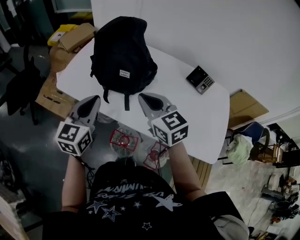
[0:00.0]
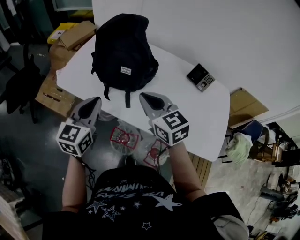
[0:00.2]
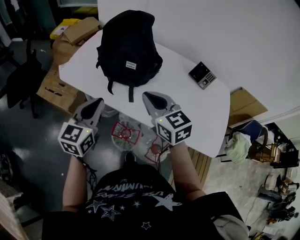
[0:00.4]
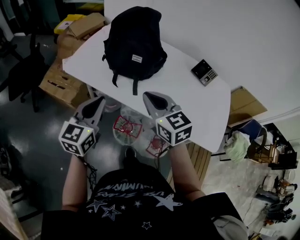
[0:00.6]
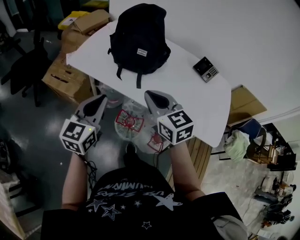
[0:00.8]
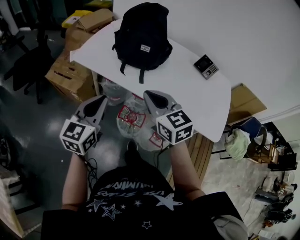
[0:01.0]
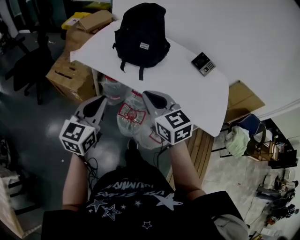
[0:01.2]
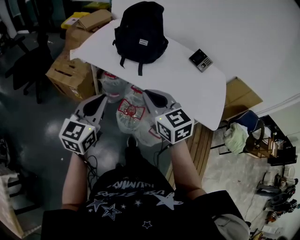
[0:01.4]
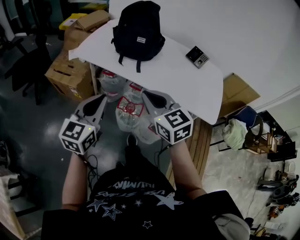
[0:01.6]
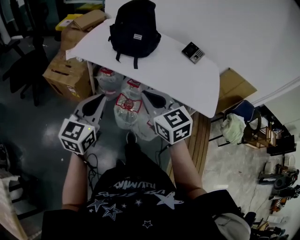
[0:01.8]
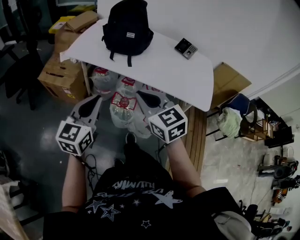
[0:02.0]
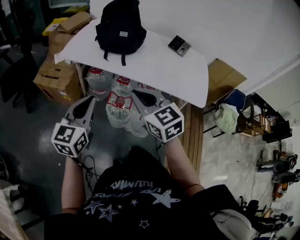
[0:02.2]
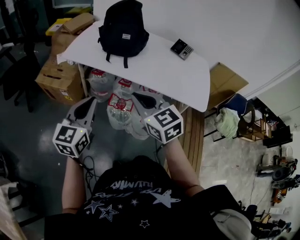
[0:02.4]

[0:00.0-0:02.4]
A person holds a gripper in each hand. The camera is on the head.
0:00.0 to 0:01.2: The left gripper travels backward by about 20 cm. The right gripper travels backward and to the left by roughly 20 cm.
0:01.2 to 0:02.4: Both grippers move backward, roughly 10 cm.

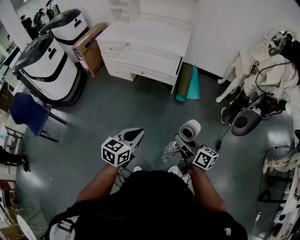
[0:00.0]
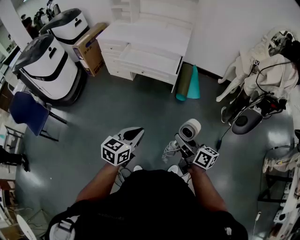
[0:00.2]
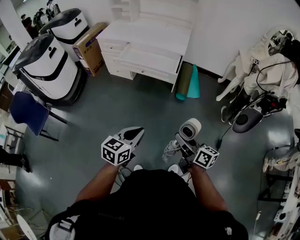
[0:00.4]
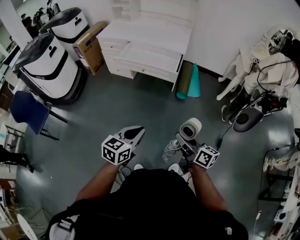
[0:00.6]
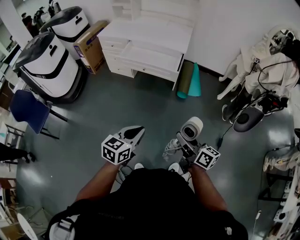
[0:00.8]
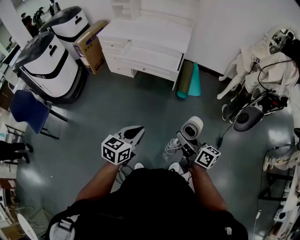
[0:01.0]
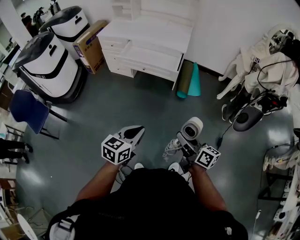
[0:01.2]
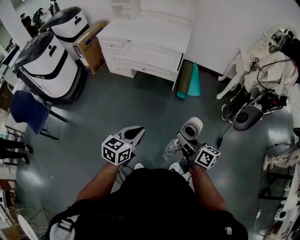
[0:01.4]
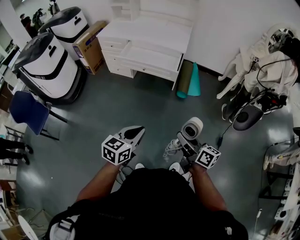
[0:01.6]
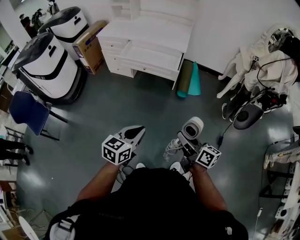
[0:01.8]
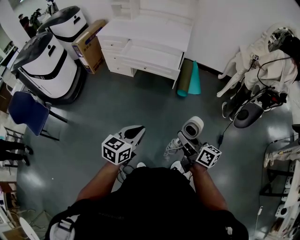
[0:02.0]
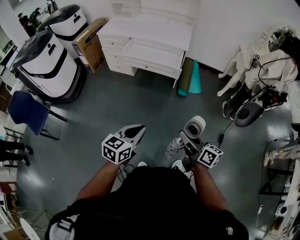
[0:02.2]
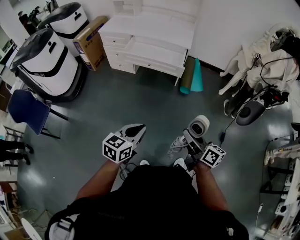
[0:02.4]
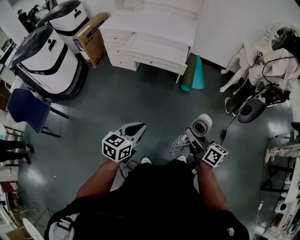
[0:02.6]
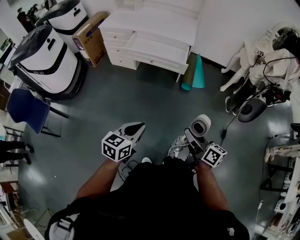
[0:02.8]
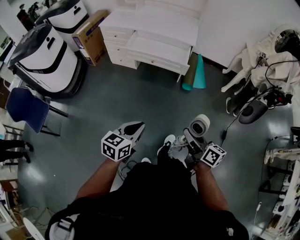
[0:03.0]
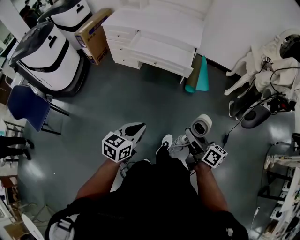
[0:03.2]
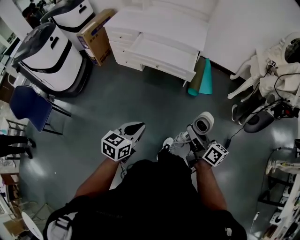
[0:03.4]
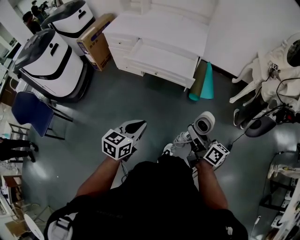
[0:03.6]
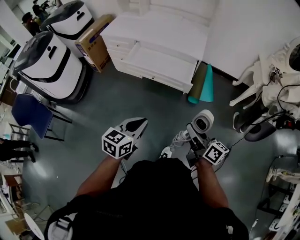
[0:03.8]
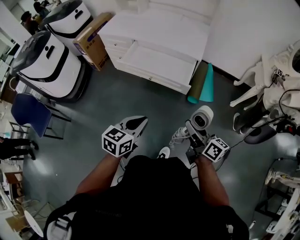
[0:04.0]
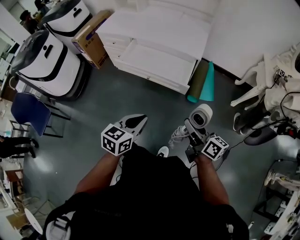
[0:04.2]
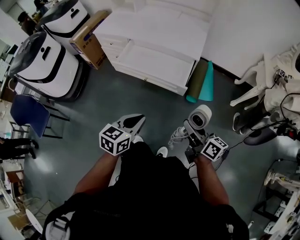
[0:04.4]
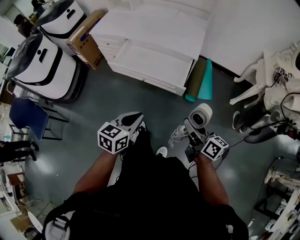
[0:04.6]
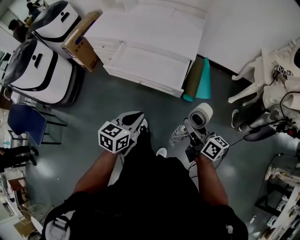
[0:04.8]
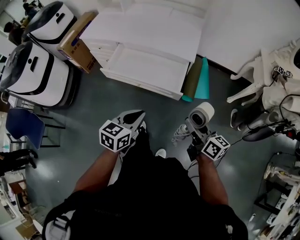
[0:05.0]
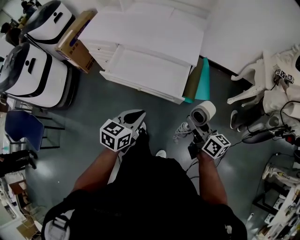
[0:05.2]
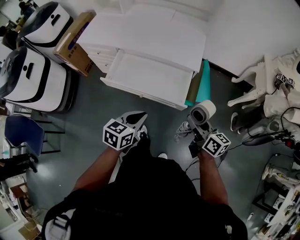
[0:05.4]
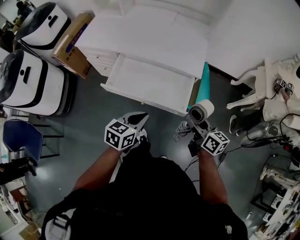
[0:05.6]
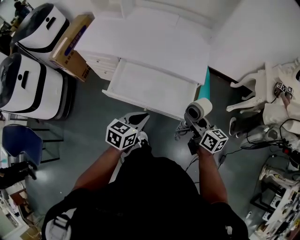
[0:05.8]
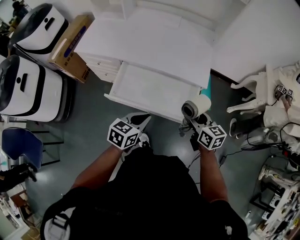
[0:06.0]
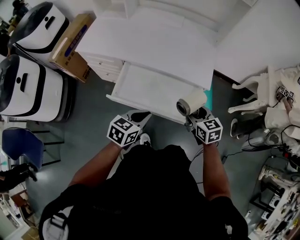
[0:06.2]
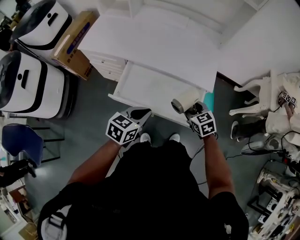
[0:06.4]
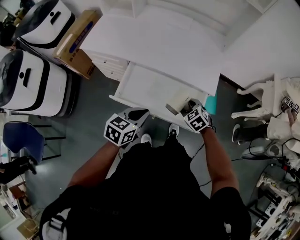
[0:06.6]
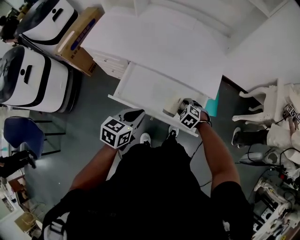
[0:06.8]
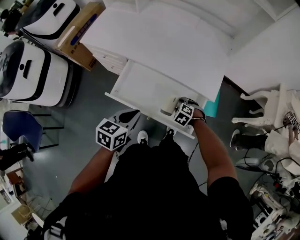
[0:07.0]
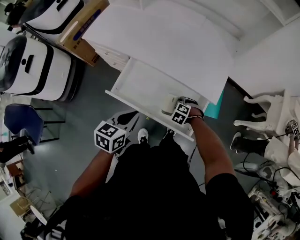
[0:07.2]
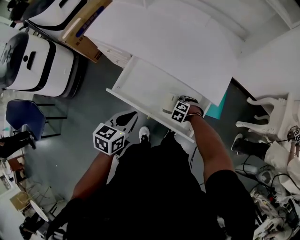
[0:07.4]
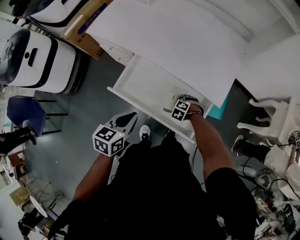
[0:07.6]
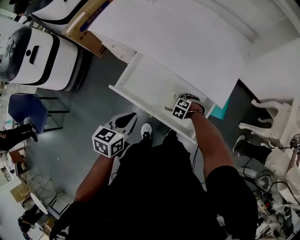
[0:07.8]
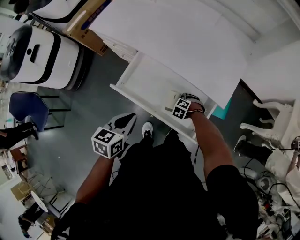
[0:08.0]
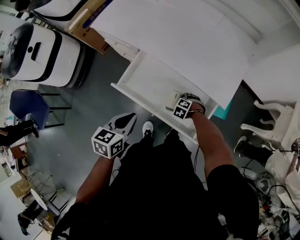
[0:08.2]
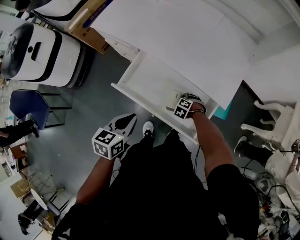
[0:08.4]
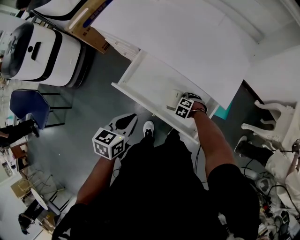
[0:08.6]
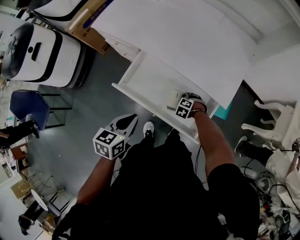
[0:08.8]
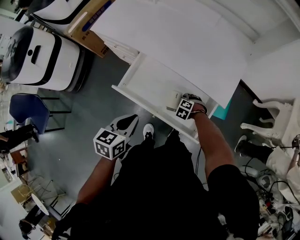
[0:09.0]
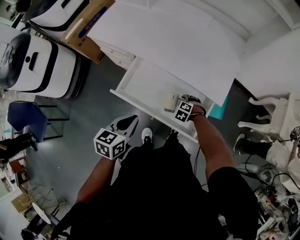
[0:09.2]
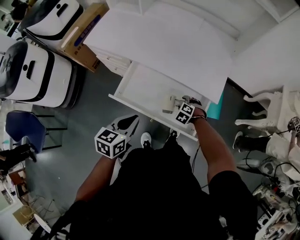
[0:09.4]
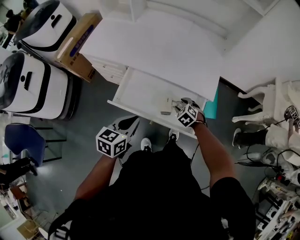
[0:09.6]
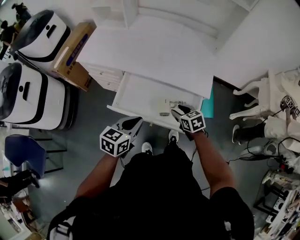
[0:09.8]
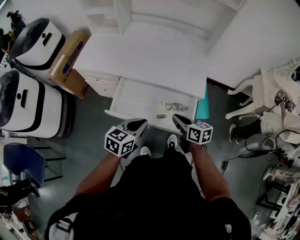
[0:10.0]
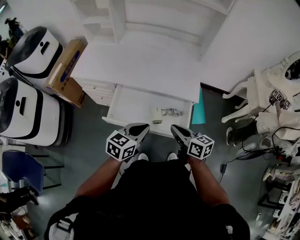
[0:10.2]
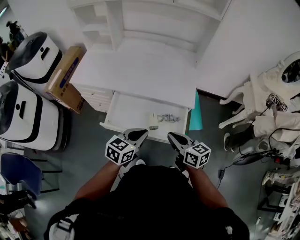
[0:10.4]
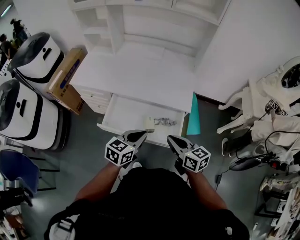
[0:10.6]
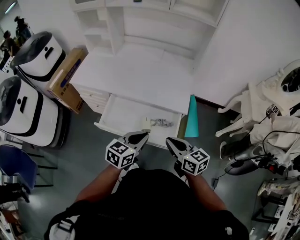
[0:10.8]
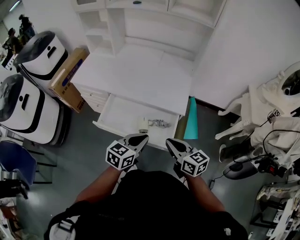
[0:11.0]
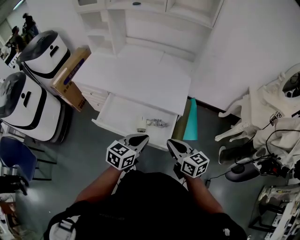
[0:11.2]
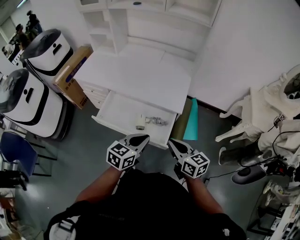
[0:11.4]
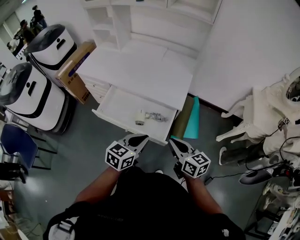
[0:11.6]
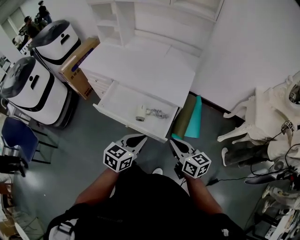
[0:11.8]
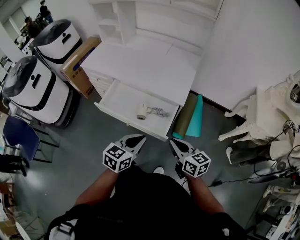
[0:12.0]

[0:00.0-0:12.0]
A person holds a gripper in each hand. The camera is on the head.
0:00.0 to 0:01.6: The grippers make only small movements.
0:01.6 to 0:03.0: Both grippers travel together to the left, approximately 5 cm.
0:03.0 to 0:04.4: Both grippers move forward, some 25 cm.
0:04.4 to 0:06.0: The grippers both shift forward by roughly 30 cm. The right gripper changes its angle by some 30 degrees.
0:06.0 to 0:07.6: The right gripper goes some 30 cm downward, and tips its fingers downward by about 60 degrees, while the left gripper shifts by approximately 10 cm, and rotates some 30 degrees.
0:07.6 to 0:09.0: The grippers make only small movements.
0:09.0 to 0:10.4: The left gripper shifts by about 10 cm, and changes its angle by roughly 40 degrees; the right gripper shifts approximately 35 cm upward, points its fingers approximately 60 degrees further upward, and closes.
0:10.4 to 0:12.0: The grippers both shift to the right and backward by roughly 20 cm.

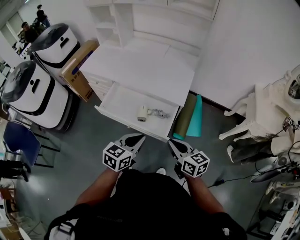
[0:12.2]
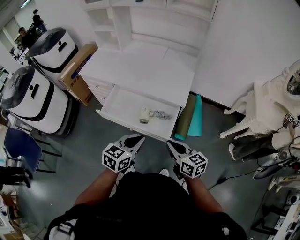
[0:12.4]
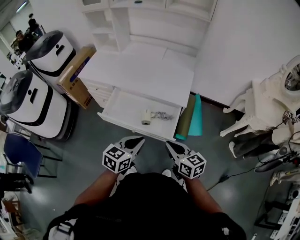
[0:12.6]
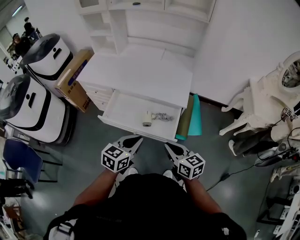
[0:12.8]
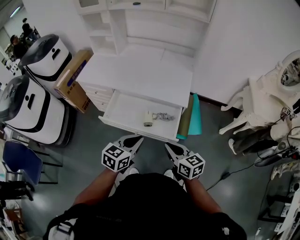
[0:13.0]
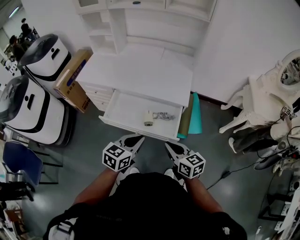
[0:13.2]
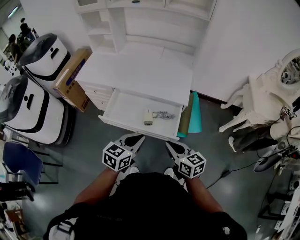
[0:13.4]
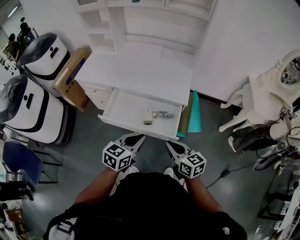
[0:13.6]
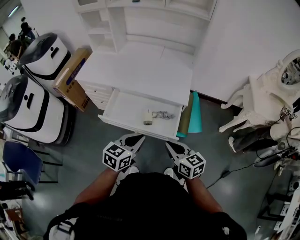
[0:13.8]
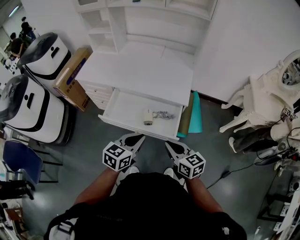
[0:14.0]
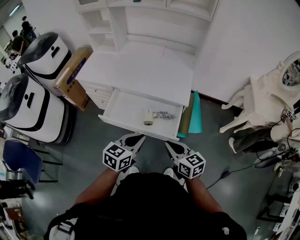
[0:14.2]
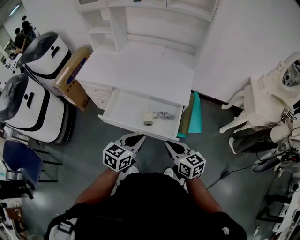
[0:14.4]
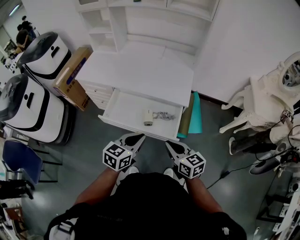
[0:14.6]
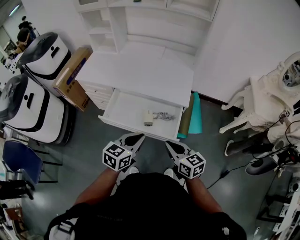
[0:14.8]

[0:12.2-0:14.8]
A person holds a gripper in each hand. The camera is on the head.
0:12.2 to 0:13.4: The two grippers go about 10 cm to the left.
0:13.4 to 0:14.8: The two grippers keep their place.

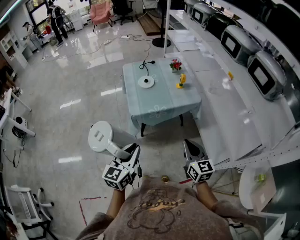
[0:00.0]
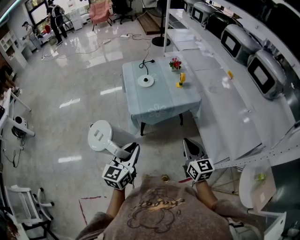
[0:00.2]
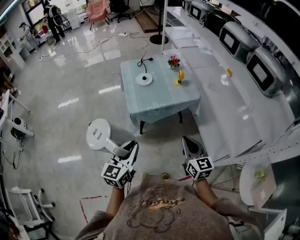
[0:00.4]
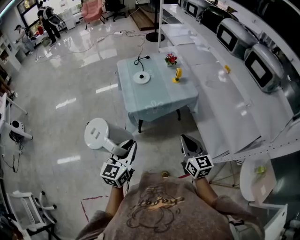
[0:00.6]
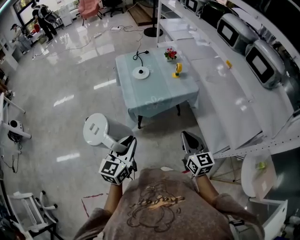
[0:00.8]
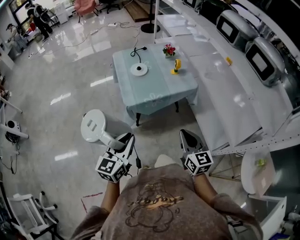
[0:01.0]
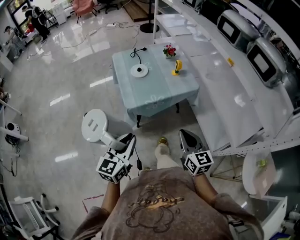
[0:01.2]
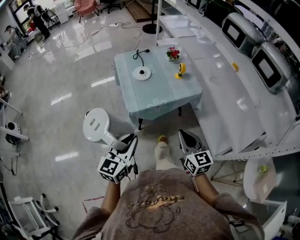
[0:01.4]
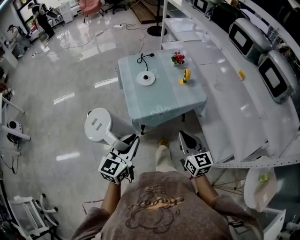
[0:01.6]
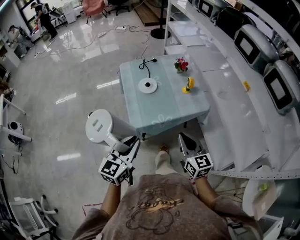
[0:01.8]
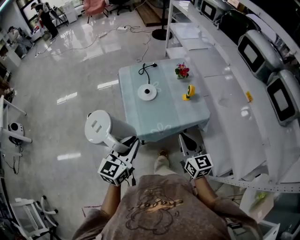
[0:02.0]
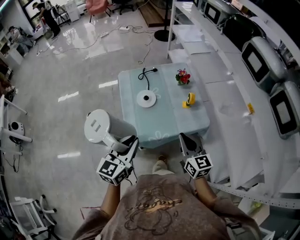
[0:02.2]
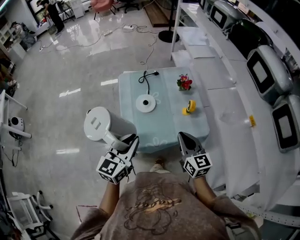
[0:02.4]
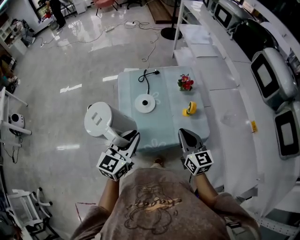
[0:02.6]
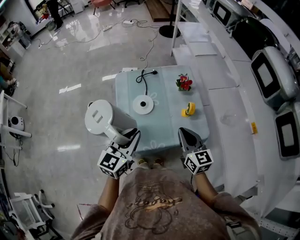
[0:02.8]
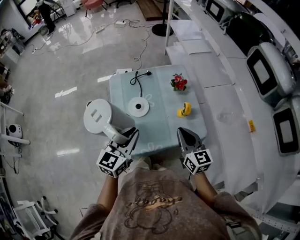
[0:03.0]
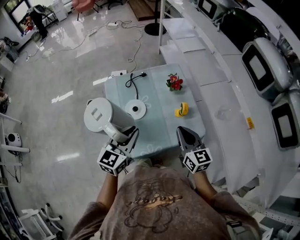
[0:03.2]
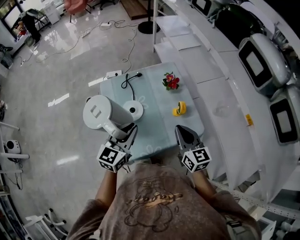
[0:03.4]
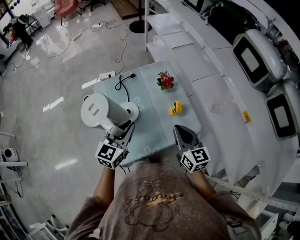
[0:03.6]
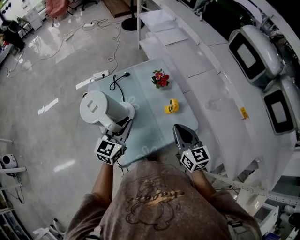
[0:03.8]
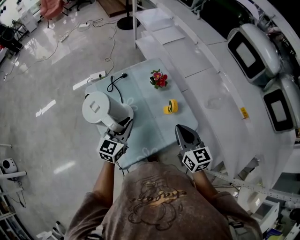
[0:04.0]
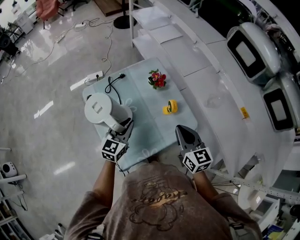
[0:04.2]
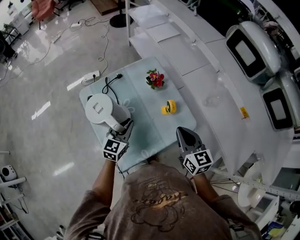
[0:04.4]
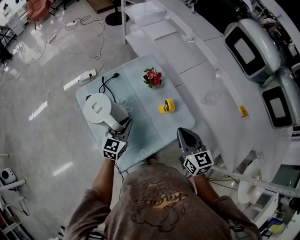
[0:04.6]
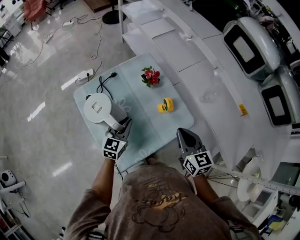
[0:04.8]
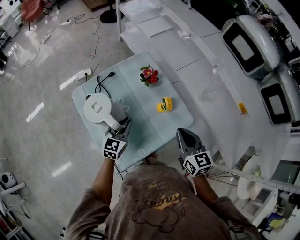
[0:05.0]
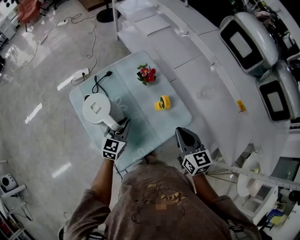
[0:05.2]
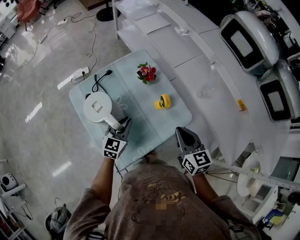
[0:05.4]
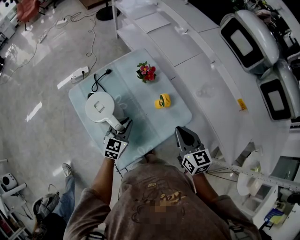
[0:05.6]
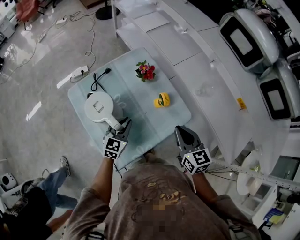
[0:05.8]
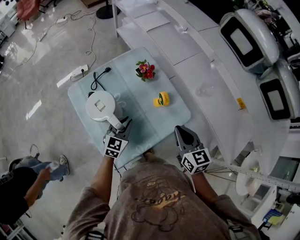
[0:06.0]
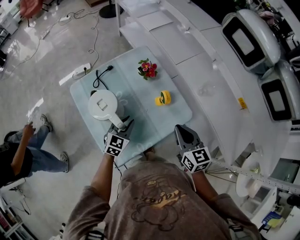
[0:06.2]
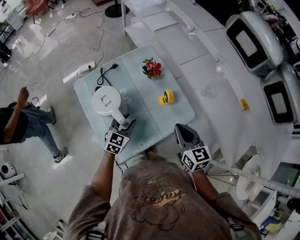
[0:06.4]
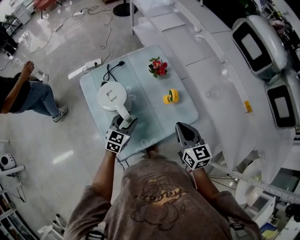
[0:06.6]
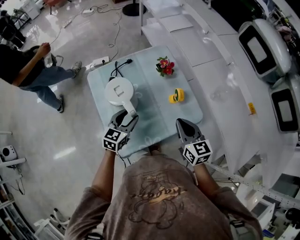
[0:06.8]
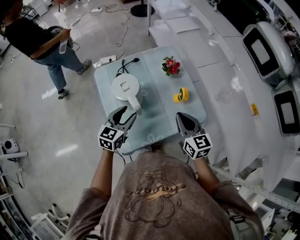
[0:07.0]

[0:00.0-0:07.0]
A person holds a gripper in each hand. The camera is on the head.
0:00.0 to 0:01.4: The right gripper travels forward and to the left by approximately 10 cm; the left gripper is displaced forward by approximately 10 cm.
0:01.4 to 0:02.8: The two grippers go roughly 35 cm forward.
0:02.8 to 0:04.2: The right gripper is displaced forward by approximately 5 cm; the left gripper heads forward and downward, covering about 20 cm.
0:04.2 to 0:05.6: The left gripper is displaced downward by some 10 cm.
0:05.6 to 0:07.0: The right gripper goes about 5 cm to the left; the left gripper is displaced to the left, upward and backward by approximately 10 cm, and opens up.
